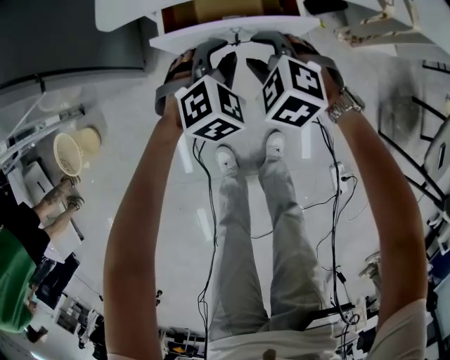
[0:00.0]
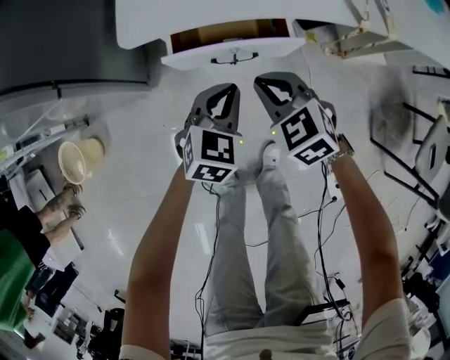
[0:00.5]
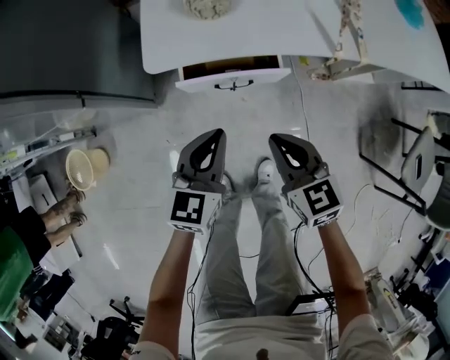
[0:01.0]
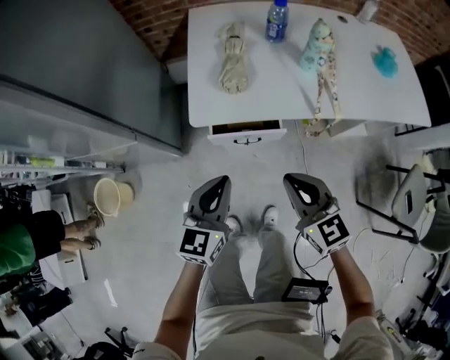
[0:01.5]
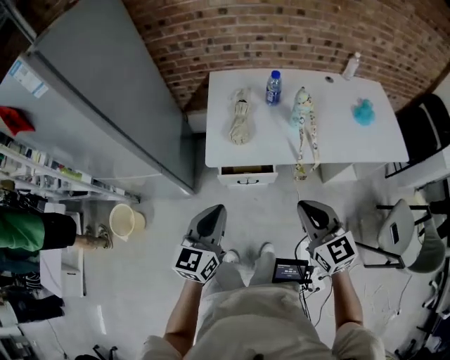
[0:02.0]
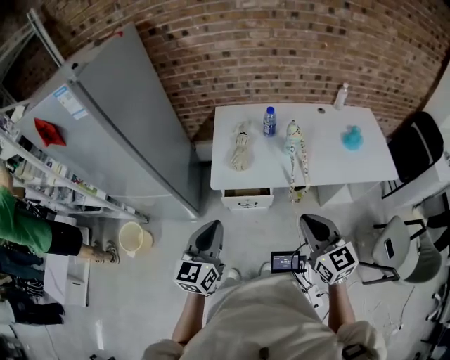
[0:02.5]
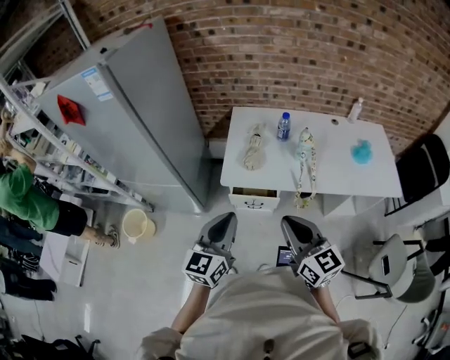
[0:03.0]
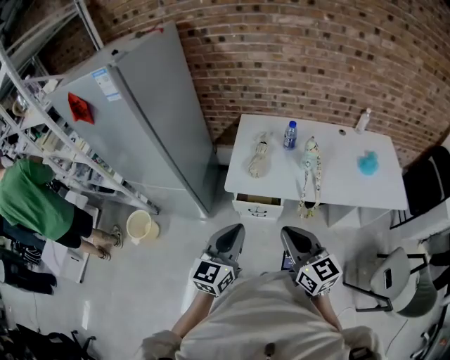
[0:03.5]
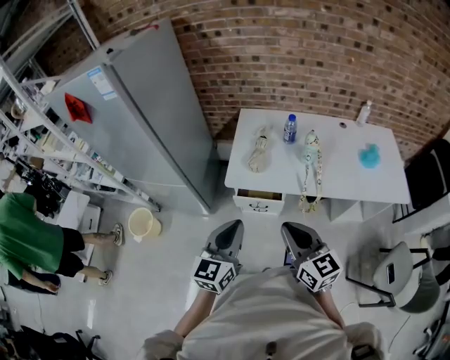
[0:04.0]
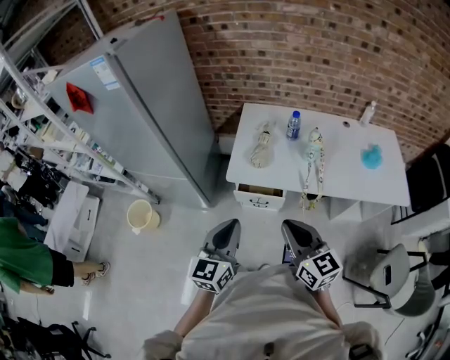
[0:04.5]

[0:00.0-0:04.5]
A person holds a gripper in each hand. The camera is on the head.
0:00.0 to 0:02.0: Both grippers move upward, some 50 cm. The right gripper points its fingers some 40 degrees further upward, and closes its fingers. The left gripper tips its fingers upward by roughly 40 degrees, and closes up.
0:02.0 to 0:04.5: The left gripper travels upward and backward by approximately 15 cm. The right gripper is displaced upward by about 10 cm.

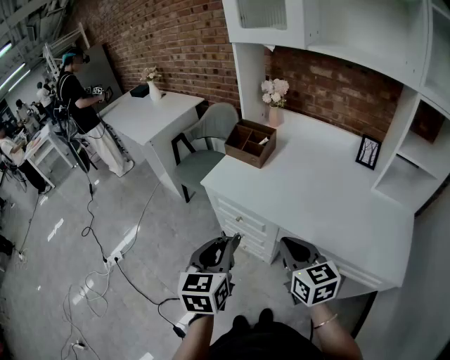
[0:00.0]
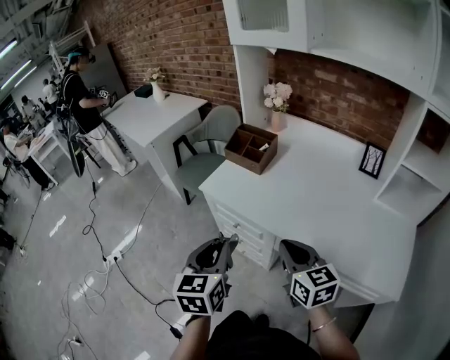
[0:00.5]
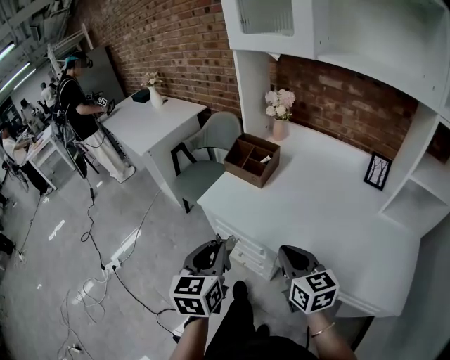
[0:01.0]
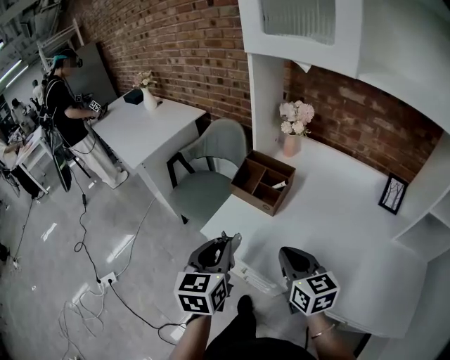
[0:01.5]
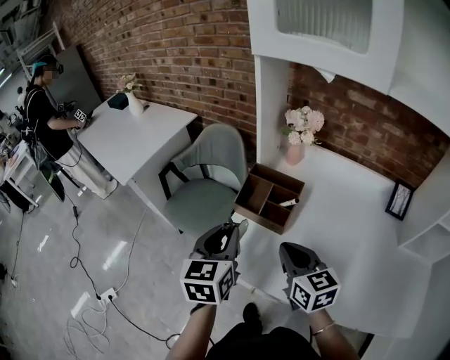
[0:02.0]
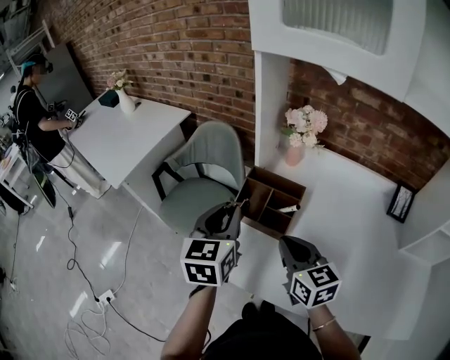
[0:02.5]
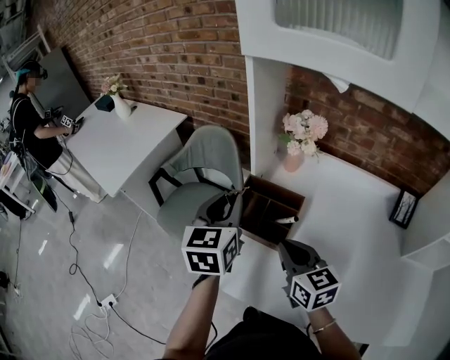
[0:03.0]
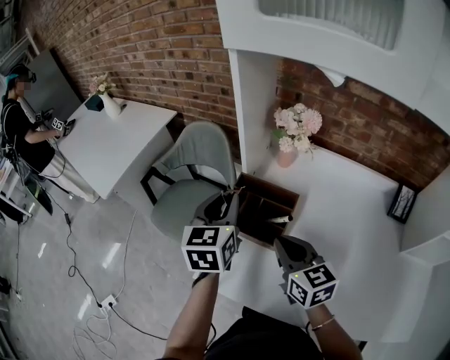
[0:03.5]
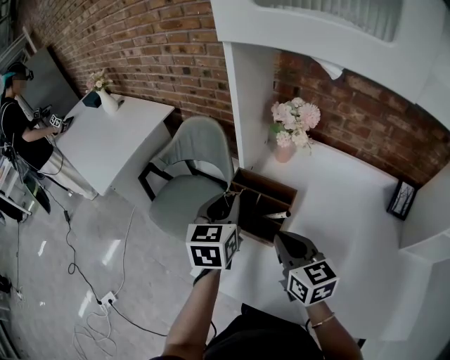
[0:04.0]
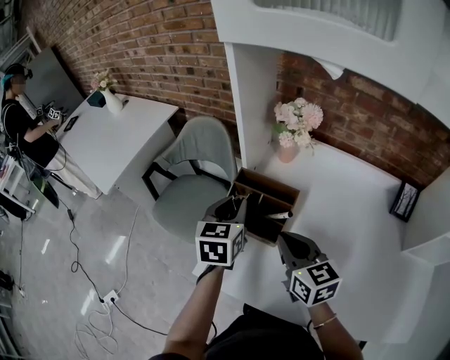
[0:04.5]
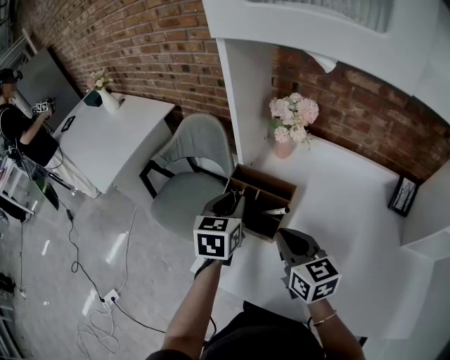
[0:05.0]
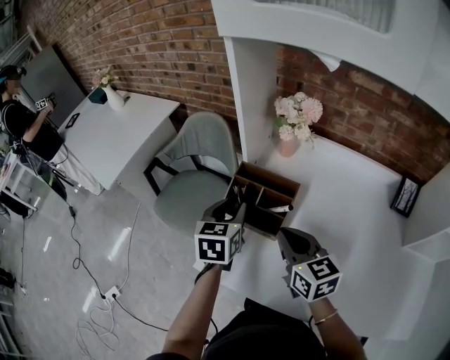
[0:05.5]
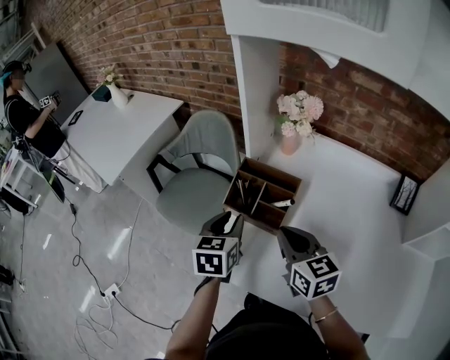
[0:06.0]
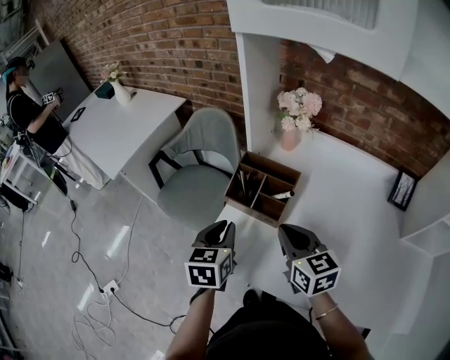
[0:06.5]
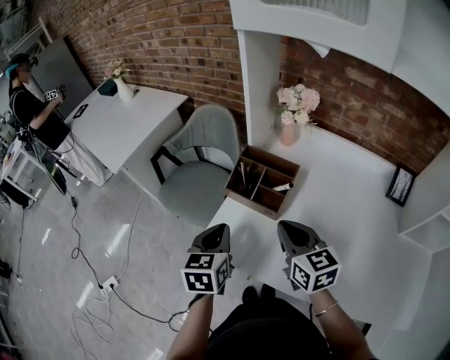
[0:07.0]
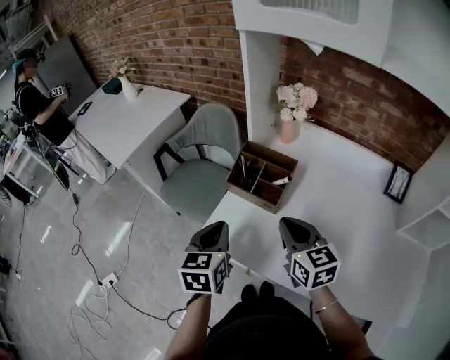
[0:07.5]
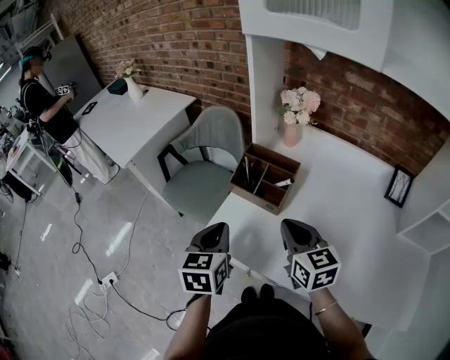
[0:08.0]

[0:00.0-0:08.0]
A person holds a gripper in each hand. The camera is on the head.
0:00.0 to 0:02.0: The two grippers go approximately 35 cm forward.
0:02.0 to 0:04.0: The right gripper goes about 10 cm forward. The left gripper goes roughly 15 cm forward.
0:04.0 to 0:06.0: The left gripper shifts some 10 cm backward and downward.
0:06.0 to 0:08.0: The left gripper goes approximately 10 cm backward, and closes up. Meanwhile the right gripper travels backward by about 5 cm.

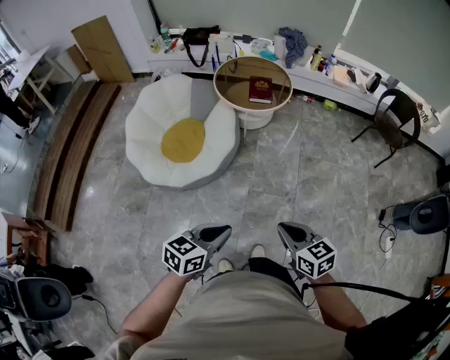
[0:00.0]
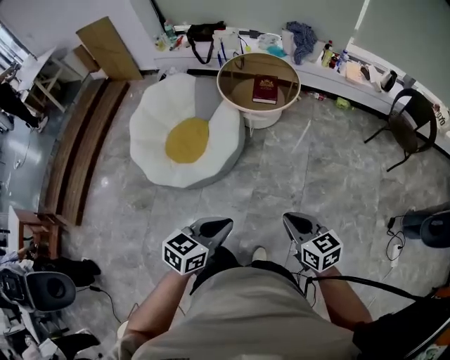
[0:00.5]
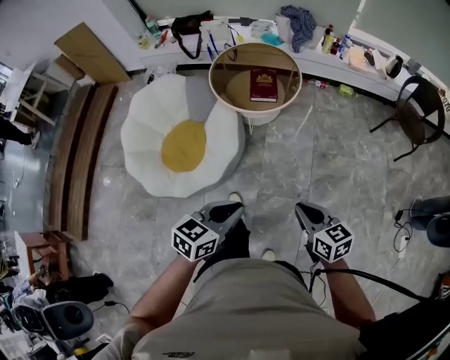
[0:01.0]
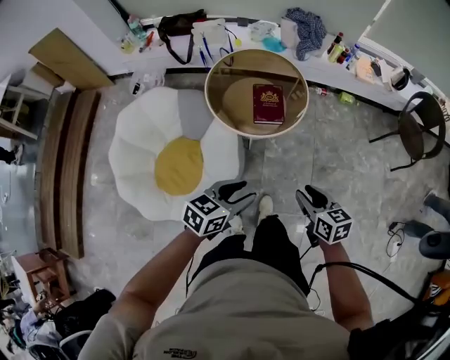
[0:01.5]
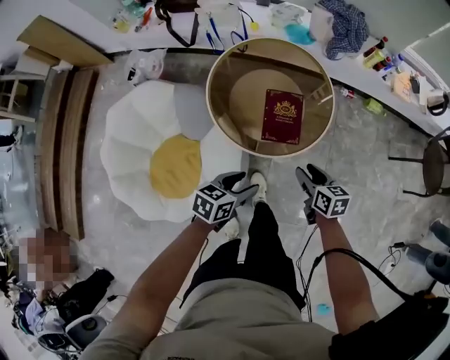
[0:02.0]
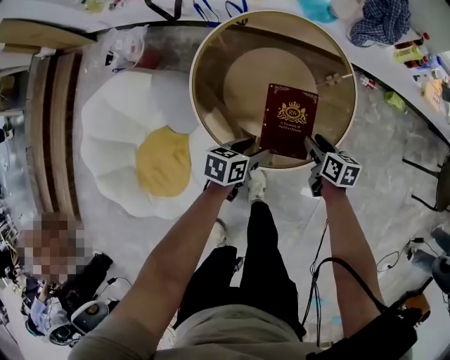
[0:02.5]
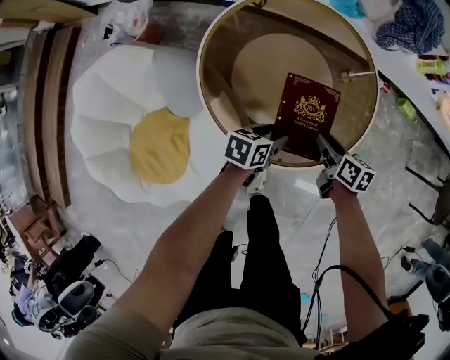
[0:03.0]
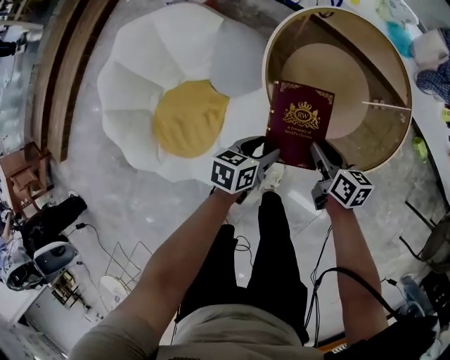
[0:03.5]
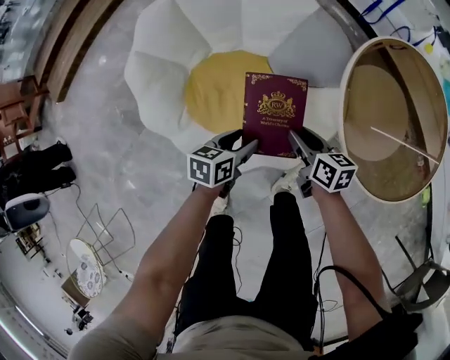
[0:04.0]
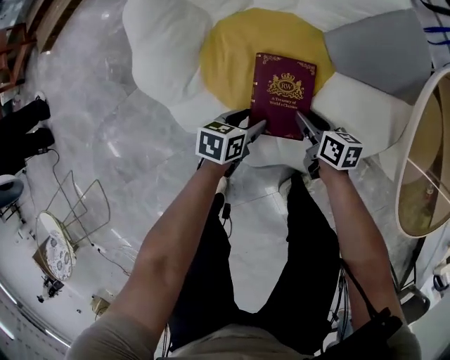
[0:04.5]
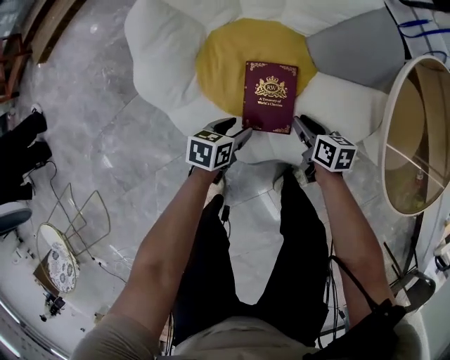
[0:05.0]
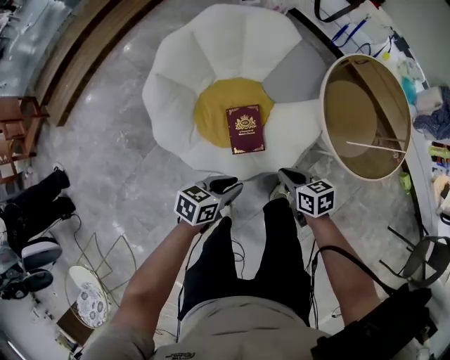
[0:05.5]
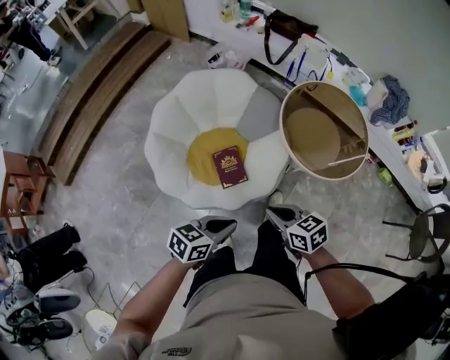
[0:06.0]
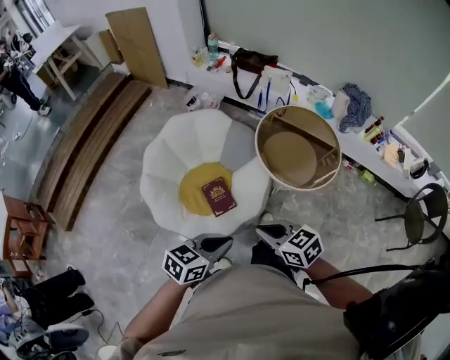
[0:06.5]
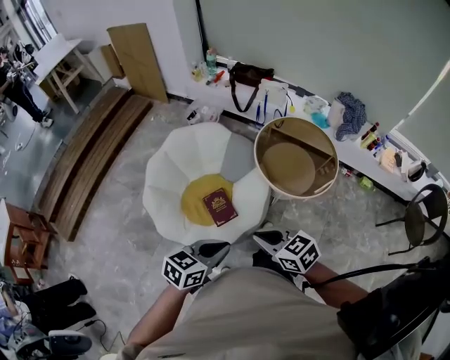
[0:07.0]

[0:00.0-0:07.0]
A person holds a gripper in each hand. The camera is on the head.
0:00.0 to 0:02.0: The two grippers travel together, forward, some 70 cm. The right gripper changes its angle by roughly 20 degrees, and opens its fingers. The left gripper opens.
0:02.0 to 0:03.5: The left gripper travels downward, to the left and forward by approximately 25 cm, and rotates some 30 degrees; the right gripper shifts about 25 cm to the left, downward and forward.
0:03.5 to 0:05.0: The right gripper shifts by about 40 cm, and rotates approximately 30 degrees. Meanwhile the left gripper changes place by approximately 40 cm, and turns by approximately 30 degrees.
0:05.0 to 0:07.0: The left gripper heads upward, covering about 60 cm, changes its angle by approximately 50 degrees, and closes; the right gripper shifts about 70 cm upward and backward, turns by some 30 degrees, and closes.

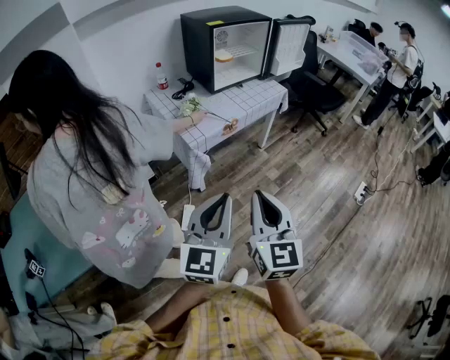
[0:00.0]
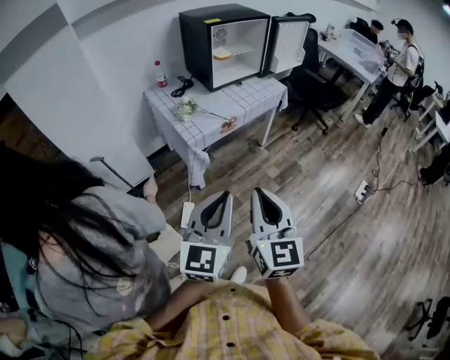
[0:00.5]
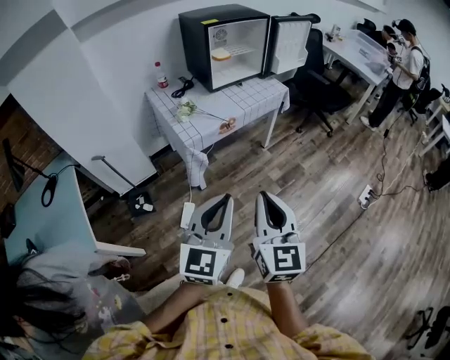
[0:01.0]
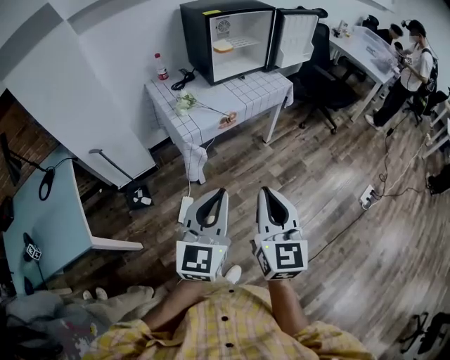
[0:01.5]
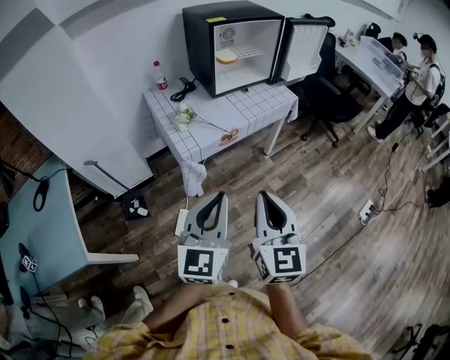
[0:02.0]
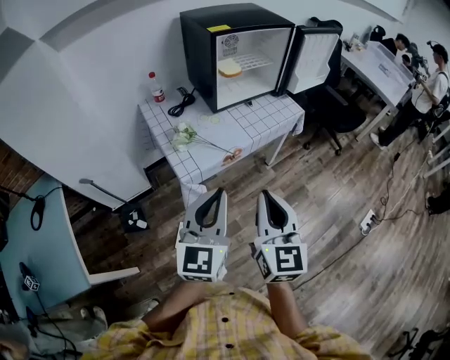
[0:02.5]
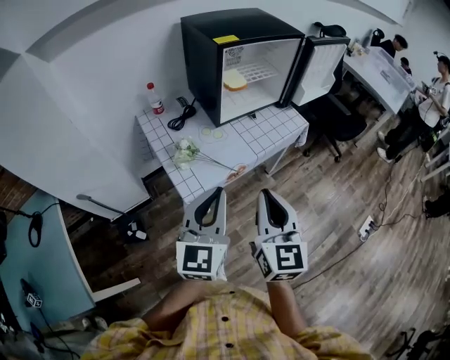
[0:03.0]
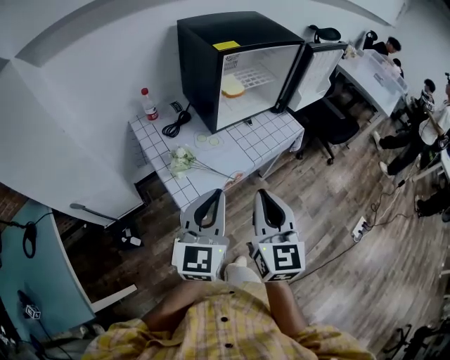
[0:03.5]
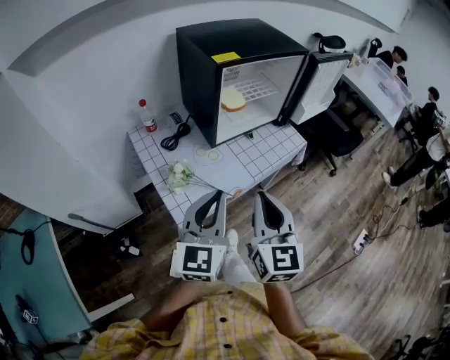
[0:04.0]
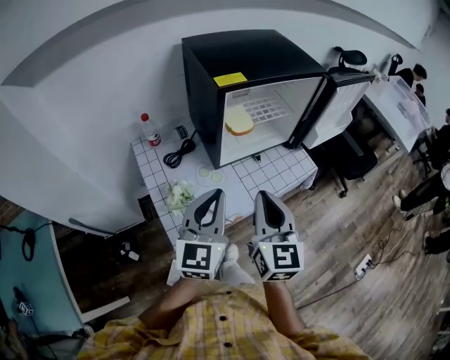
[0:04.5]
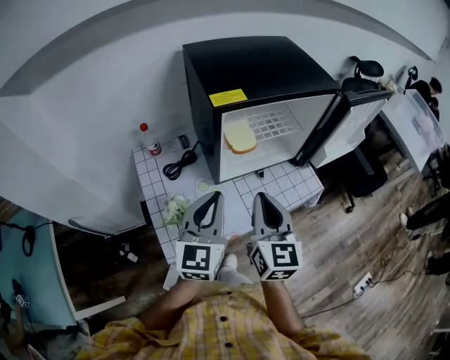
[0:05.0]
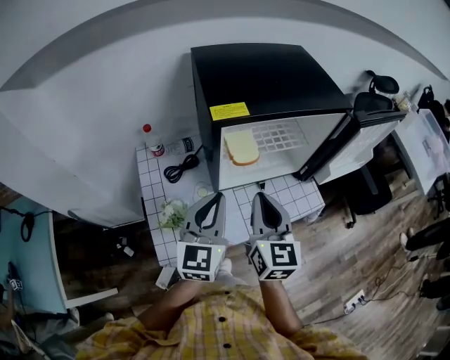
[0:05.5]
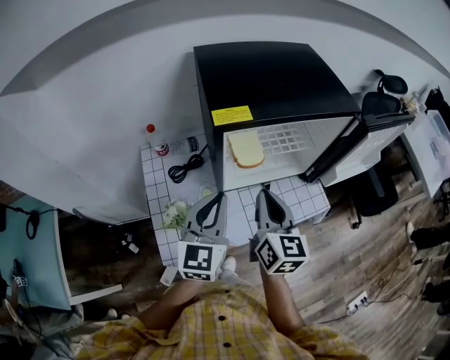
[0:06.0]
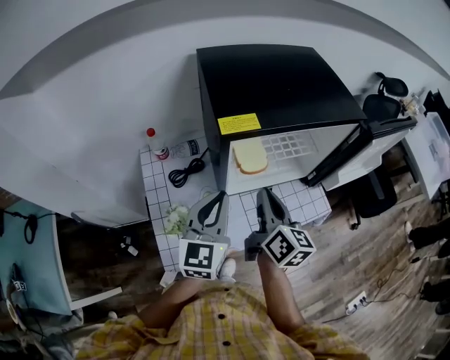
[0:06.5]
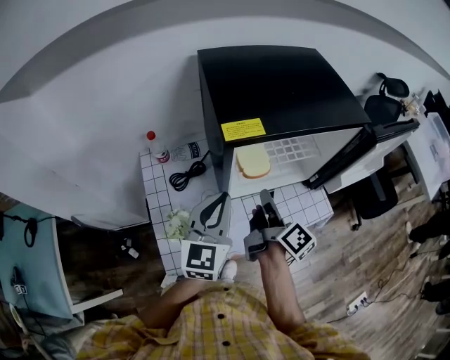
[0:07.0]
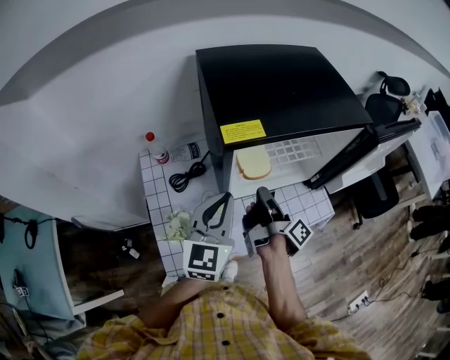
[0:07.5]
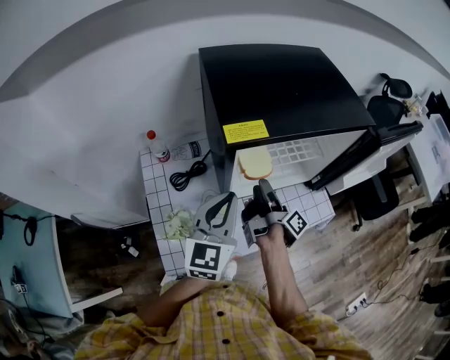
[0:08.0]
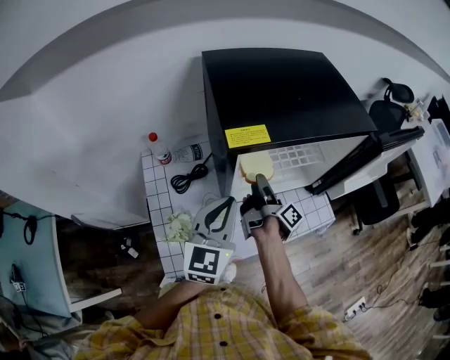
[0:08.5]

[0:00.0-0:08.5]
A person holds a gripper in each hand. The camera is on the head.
0:00.0 to 0:02.0: The right gripper shifts about 15 cm forward and to the right. Meanwhile the left gripper heads forward, covering some 15 cm.
0:02.0 to 0:04.0: Both grippers travel together forward, some 30 cm.
0:04.0 to 0:06.5: Both grippers travel together forward, about 30 cm. The right gripper changes its angle by roughly 40 degrees.
0:06.5 to 0:08.5: The right gripper goes about 15 cm downward and forward, twists about 60 degrees clockwise, seen from behind, and opens.
